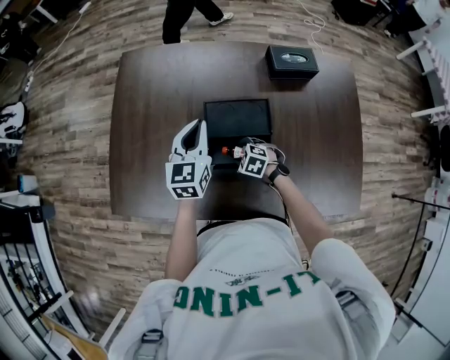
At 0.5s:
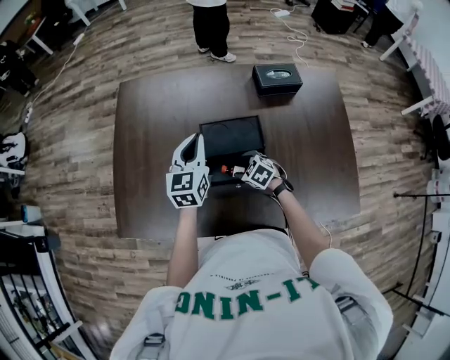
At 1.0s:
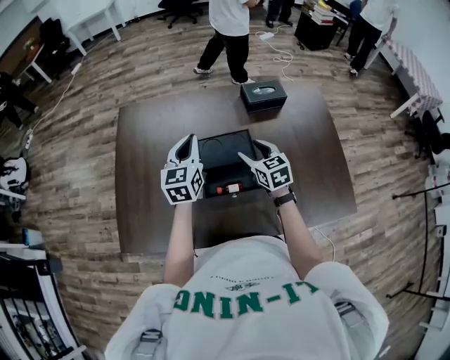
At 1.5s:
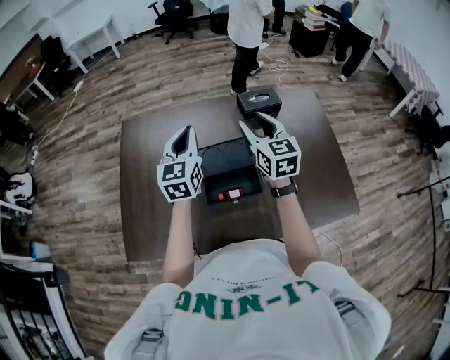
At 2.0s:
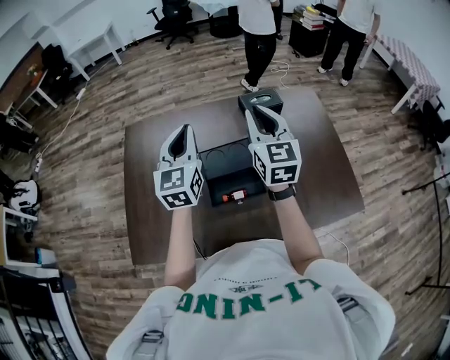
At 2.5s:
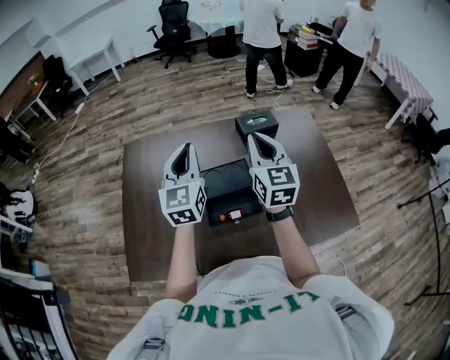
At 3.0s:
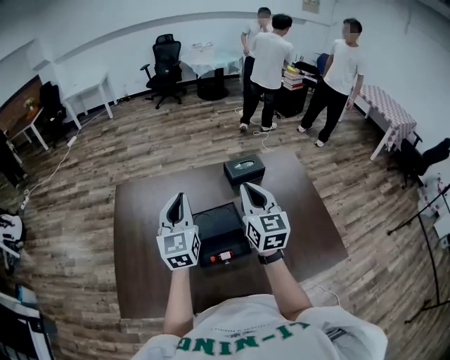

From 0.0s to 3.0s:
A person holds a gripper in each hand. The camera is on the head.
From 0.0s to 1.5s: The left gripper heads upward, covering about 15 cm; the right gripper travels upward by roughly 40 cm, and angles its fingers upward, by approximately 60 degrees.
From 1.5s to 3.0s: The right gripper shifts by some 5 cm, and closes up. The left gripper shifts by some 5 cm.

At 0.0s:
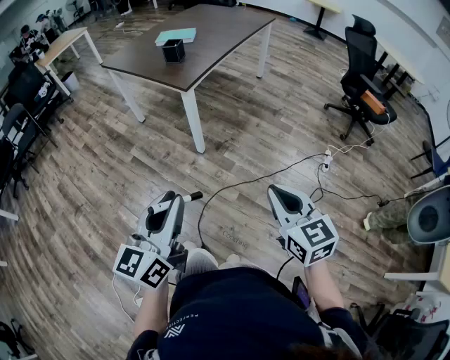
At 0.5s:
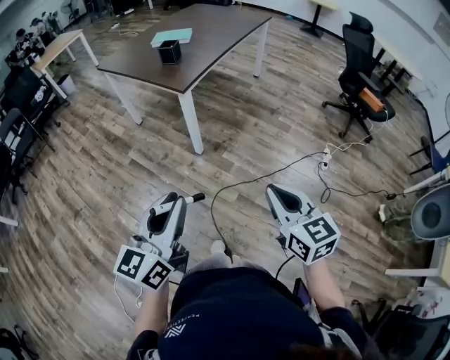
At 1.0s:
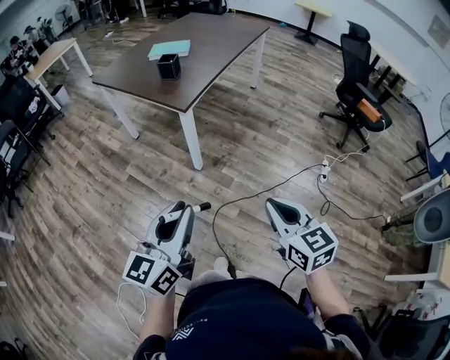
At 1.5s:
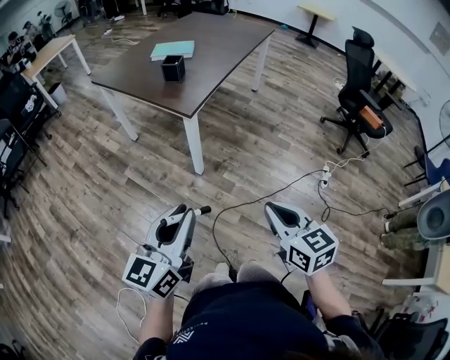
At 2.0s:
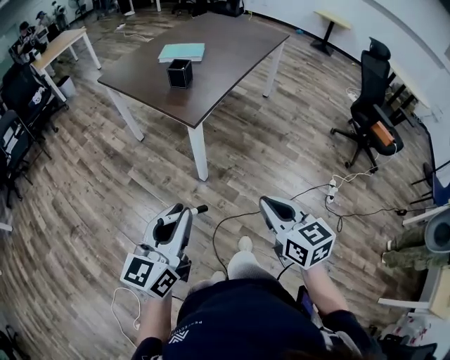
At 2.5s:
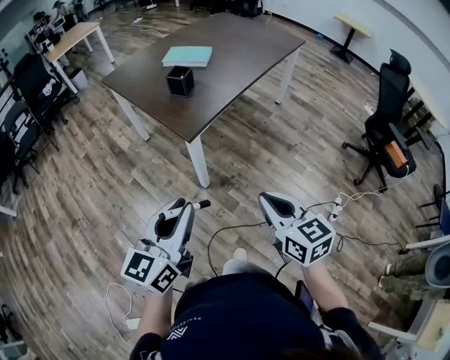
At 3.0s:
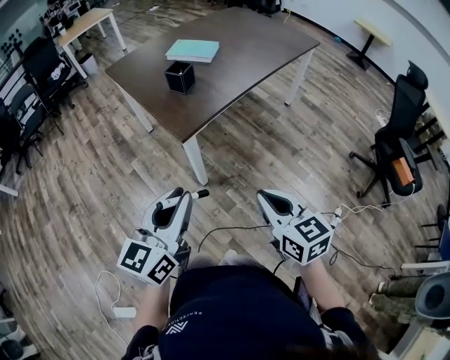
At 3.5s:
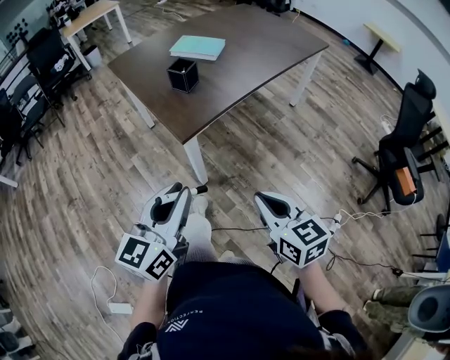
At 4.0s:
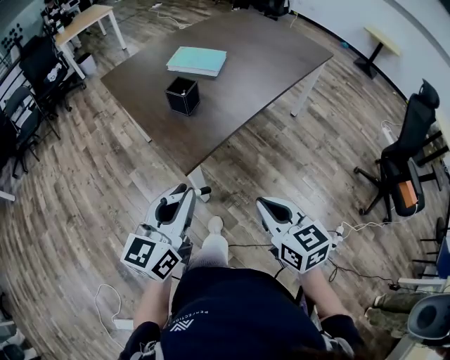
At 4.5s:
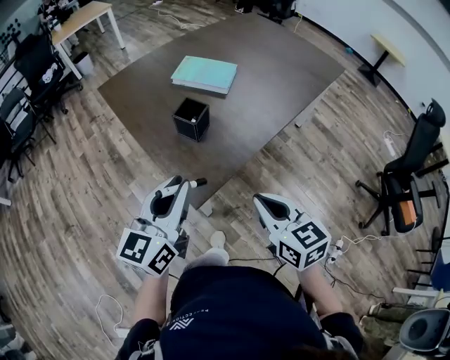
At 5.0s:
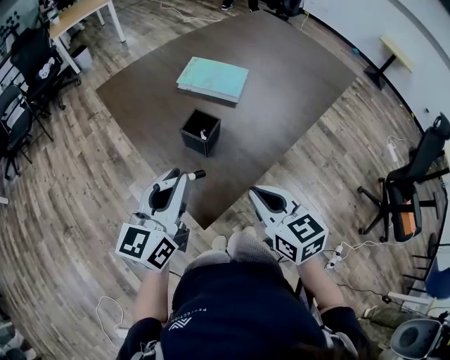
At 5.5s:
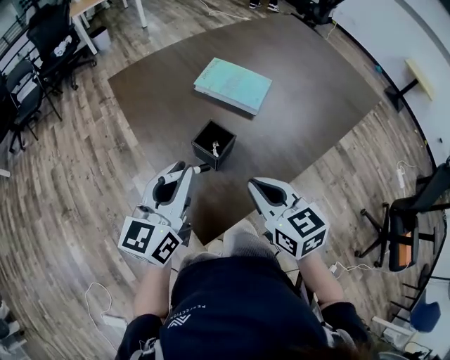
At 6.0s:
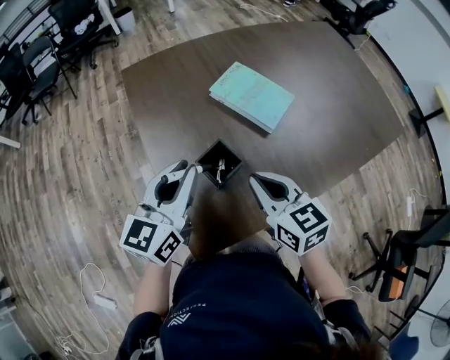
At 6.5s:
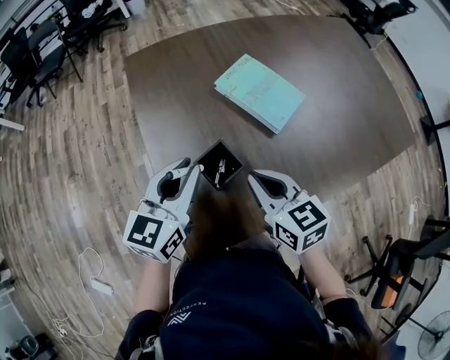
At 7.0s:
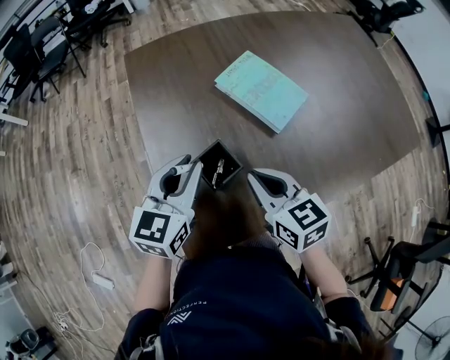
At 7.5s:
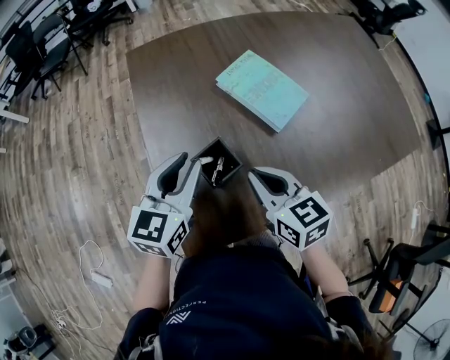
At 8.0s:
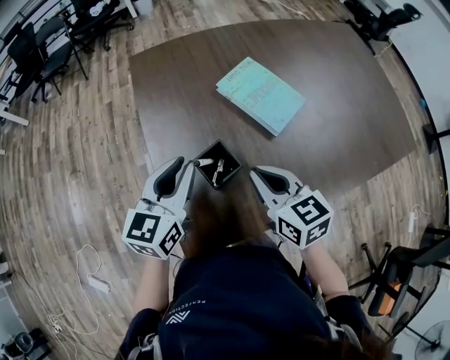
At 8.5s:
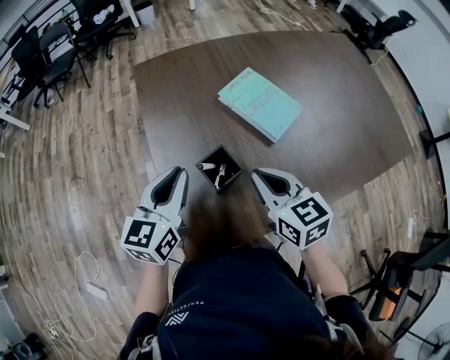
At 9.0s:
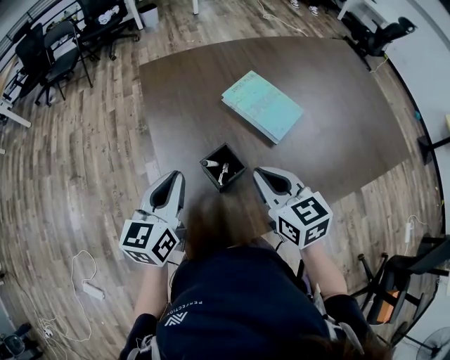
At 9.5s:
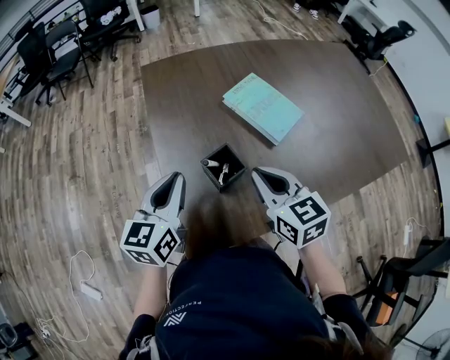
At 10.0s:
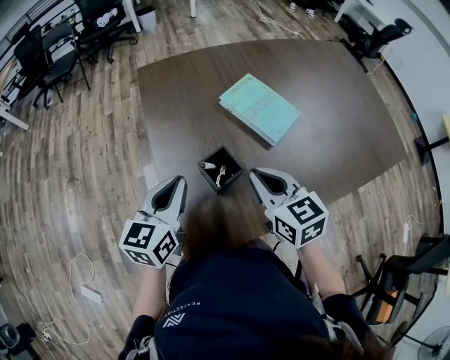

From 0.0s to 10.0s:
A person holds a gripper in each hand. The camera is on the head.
From 0.0s to 2.0s: Both grippers travel together forward, roughly 20 cm.
From 2.0s to 4.0s: The left gripper moves forward and to the right, roughly 30 cm. The right gripper heads forward, covering about 25 cm.
From 4.0s to 6.0s: Both grippers move forward, roughly 40 cm. The right gripper changes its angle by some 20 degrees.
From 6.0s to 10.0s: There are only small adjustments of the grippers.

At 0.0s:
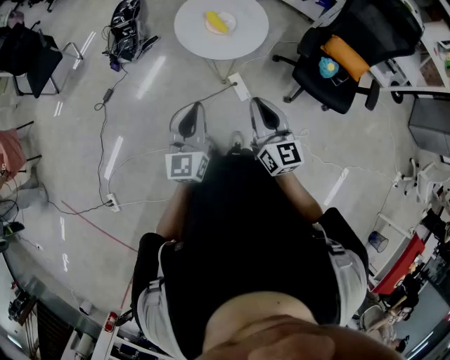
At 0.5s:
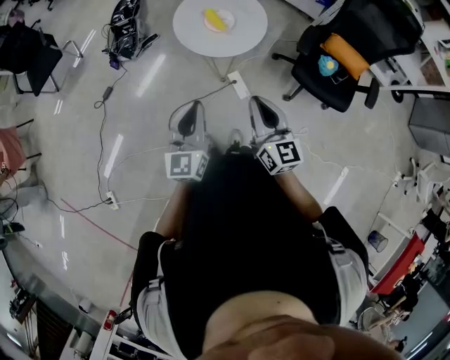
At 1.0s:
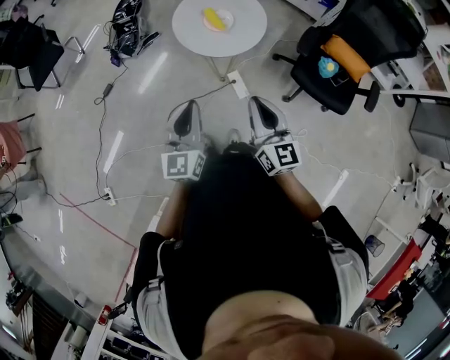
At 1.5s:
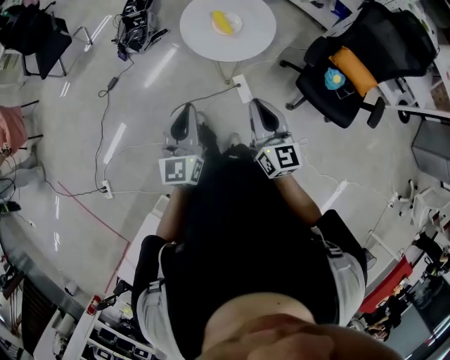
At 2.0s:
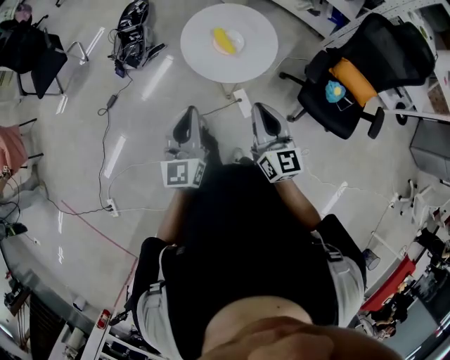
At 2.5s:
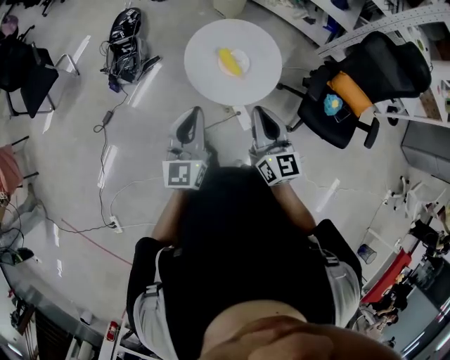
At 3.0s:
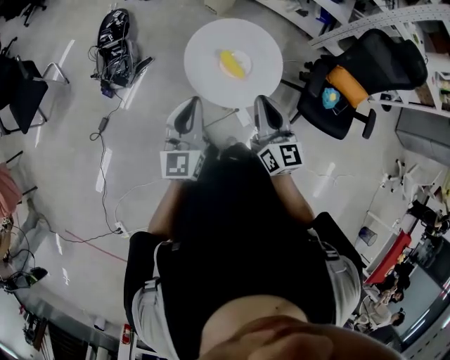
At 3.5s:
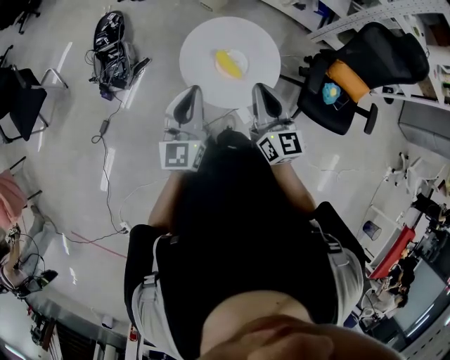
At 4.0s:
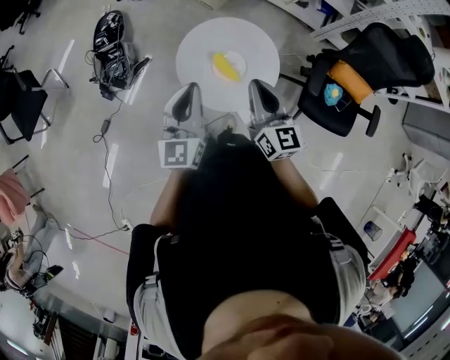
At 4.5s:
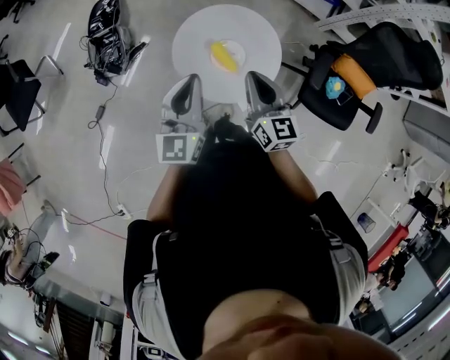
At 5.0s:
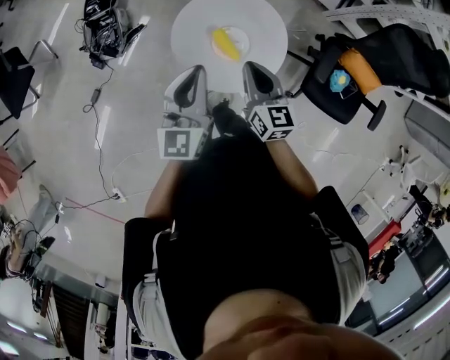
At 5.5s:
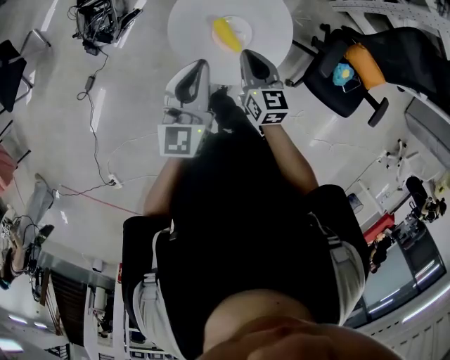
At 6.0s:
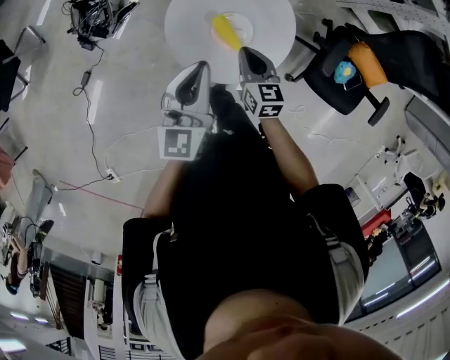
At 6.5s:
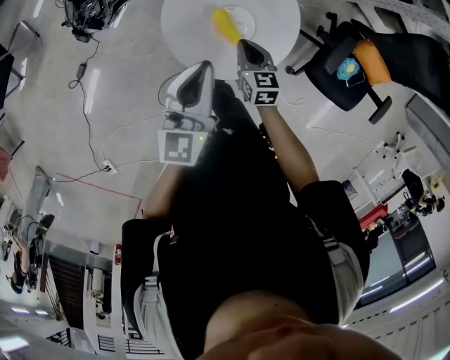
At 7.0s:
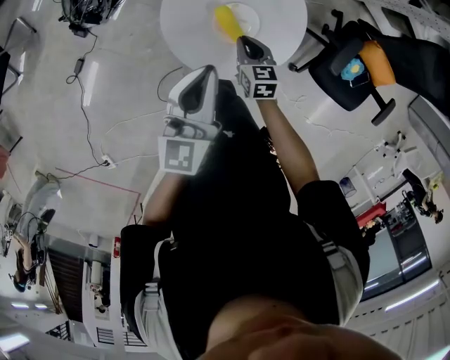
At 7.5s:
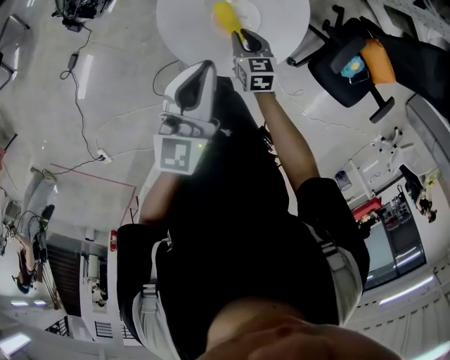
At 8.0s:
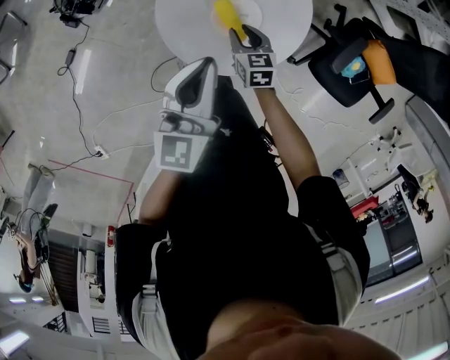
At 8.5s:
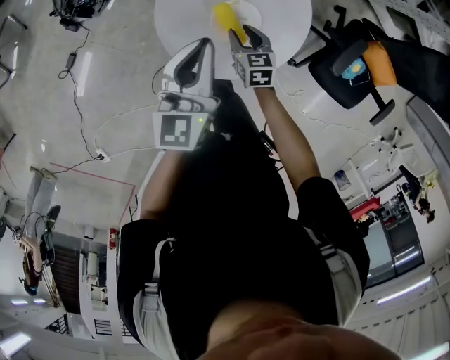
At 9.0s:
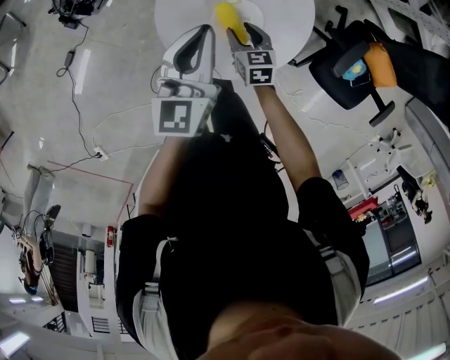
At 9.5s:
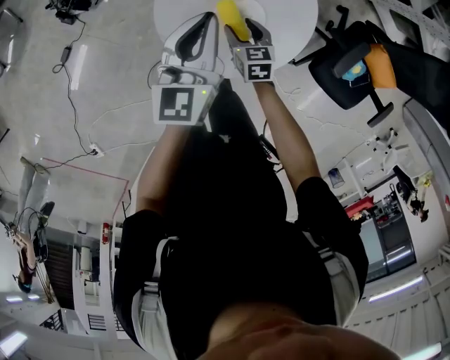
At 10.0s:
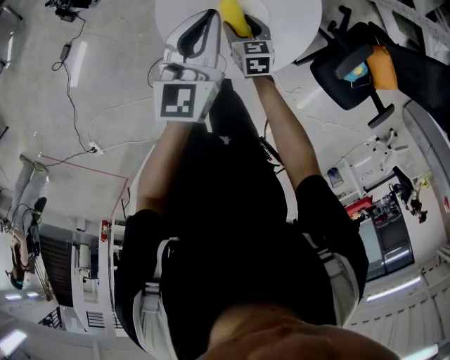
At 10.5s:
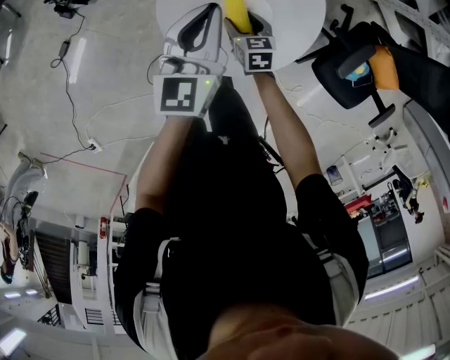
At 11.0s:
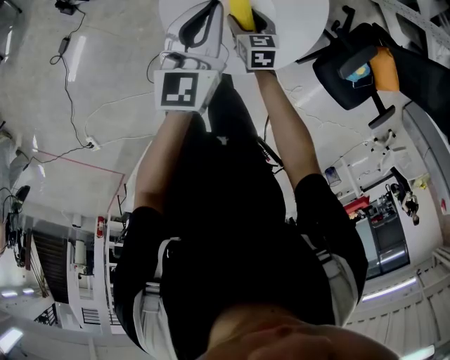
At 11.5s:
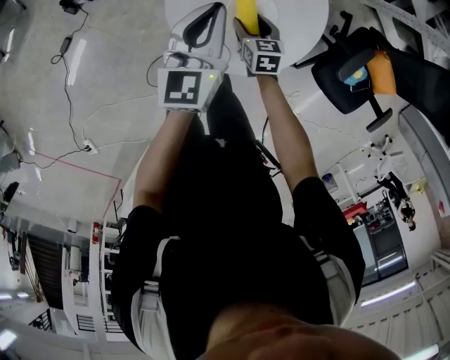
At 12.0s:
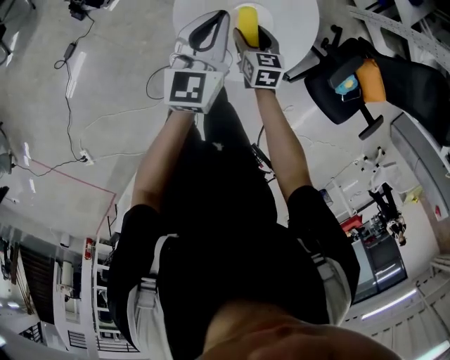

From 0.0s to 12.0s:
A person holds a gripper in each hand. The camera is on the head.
From 0.0s to 2.0s: The grippers both shift forward by roughly 10 cm.
From 2.0s to 4.0s: The two grippers go about 25 cm forward.
From 4.0s to 6.0s: The right gripper goes approximately 20 cm downward, and turns by roughly 30 degrees. Meanwhile the left gripper heads downward and forward, covering approximately 10 cm.
From 6.0s to 8.0s: The left gripper travels downward by roughly 5 cm. Meanwhile the right gripper moves downward, approximately 15 cm, and opens its fingers.
From 8.0s to 10.0s: The right gripper ends up approximately 5 cm from where it was, and opens its fingers, while the left gripper moves forward and downward, some 10 cm.
From 10.0s to 12.0s: The right gripper moves upward, some 5 cm.

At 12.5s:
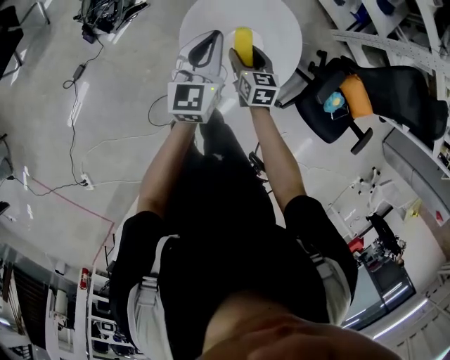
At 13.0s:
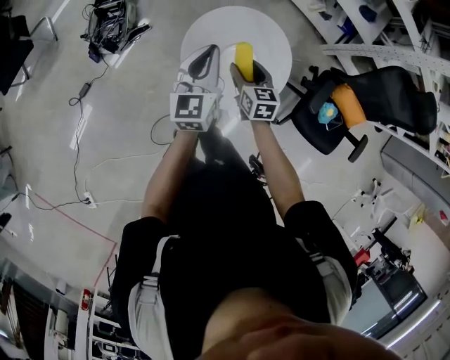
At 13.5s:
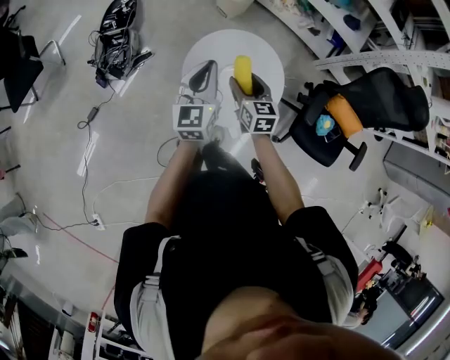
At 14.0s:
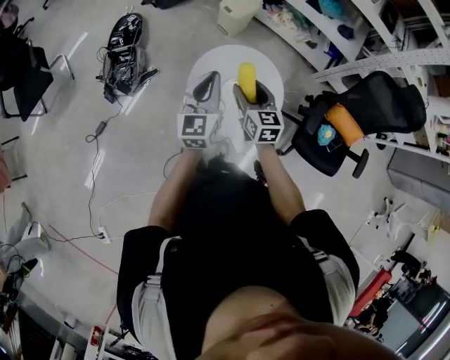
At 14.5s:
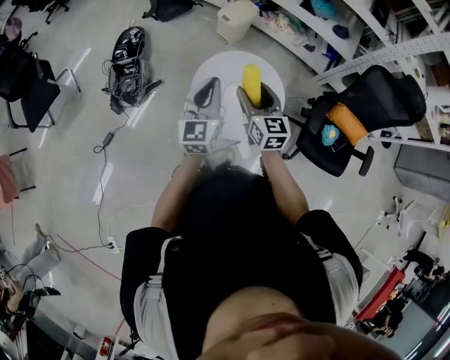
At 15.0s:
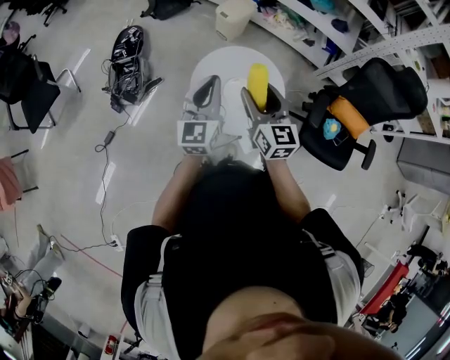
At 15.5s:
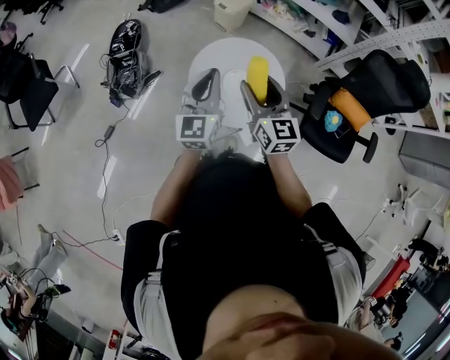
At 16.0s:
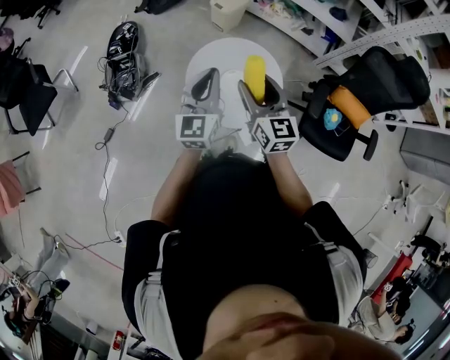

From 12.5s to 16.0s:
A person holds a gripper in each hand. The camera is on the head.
From 12.5s to 14.5s: The right gripper heads upward, covering some 25 cm, and swivels some 30 degrees. Meanwhile the left gripper moves upward and backward, about 15 cm.
From 14.5s to 16.0s: The right gripper moves approximately 5 cm.
